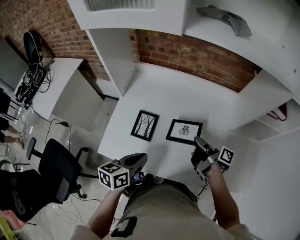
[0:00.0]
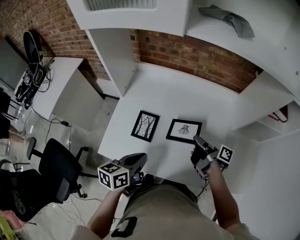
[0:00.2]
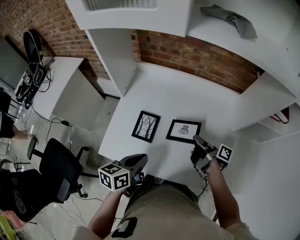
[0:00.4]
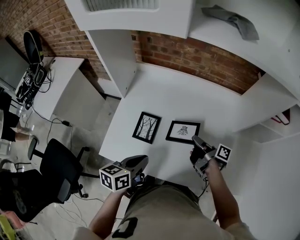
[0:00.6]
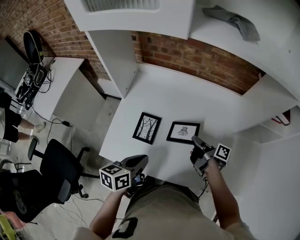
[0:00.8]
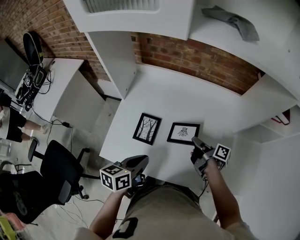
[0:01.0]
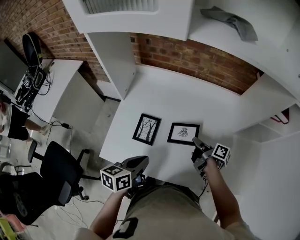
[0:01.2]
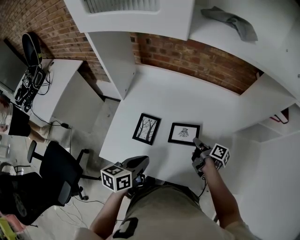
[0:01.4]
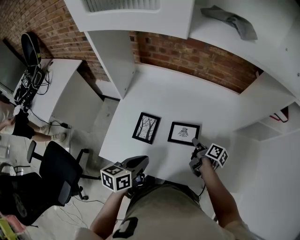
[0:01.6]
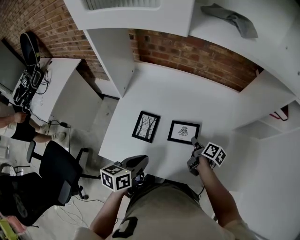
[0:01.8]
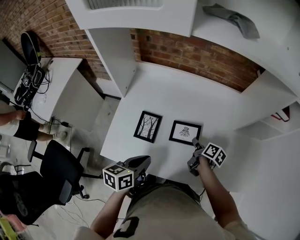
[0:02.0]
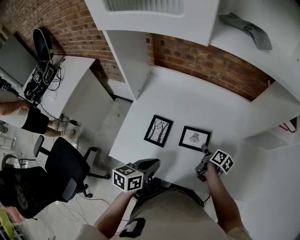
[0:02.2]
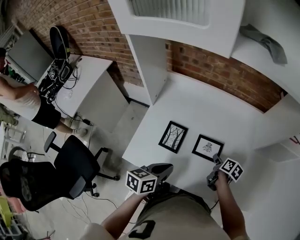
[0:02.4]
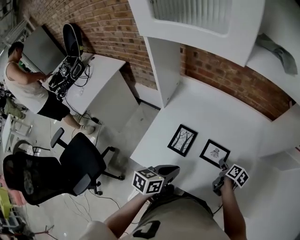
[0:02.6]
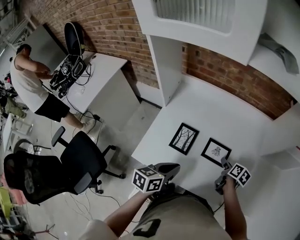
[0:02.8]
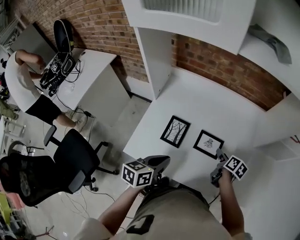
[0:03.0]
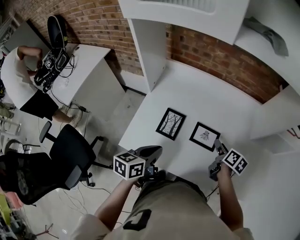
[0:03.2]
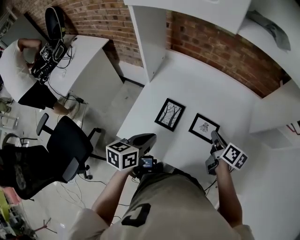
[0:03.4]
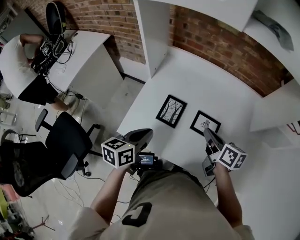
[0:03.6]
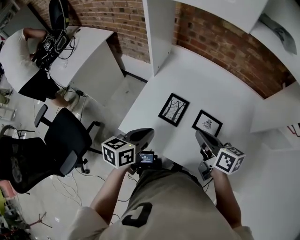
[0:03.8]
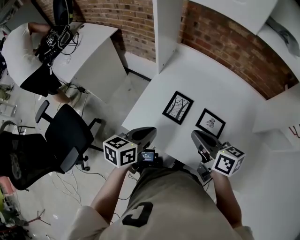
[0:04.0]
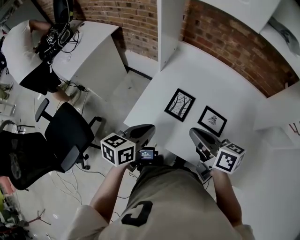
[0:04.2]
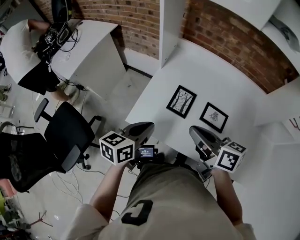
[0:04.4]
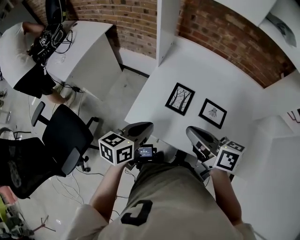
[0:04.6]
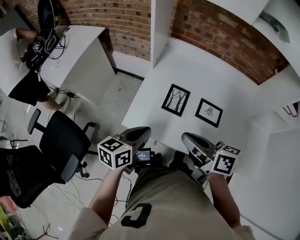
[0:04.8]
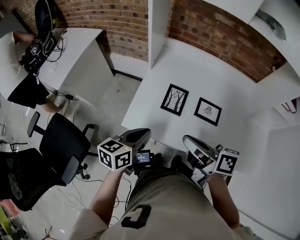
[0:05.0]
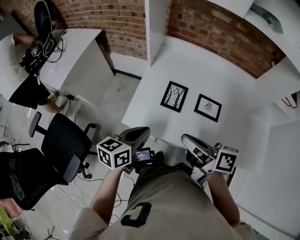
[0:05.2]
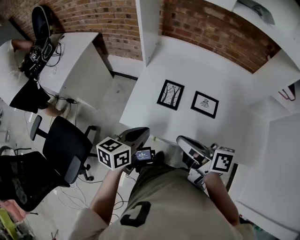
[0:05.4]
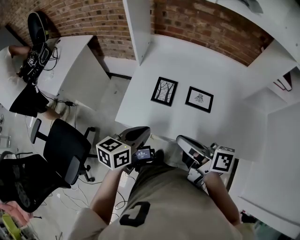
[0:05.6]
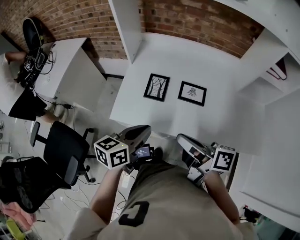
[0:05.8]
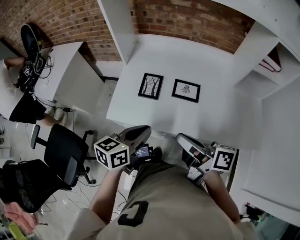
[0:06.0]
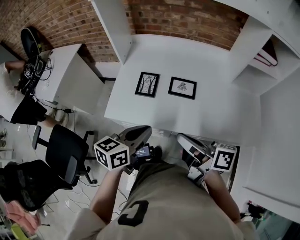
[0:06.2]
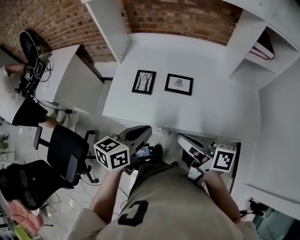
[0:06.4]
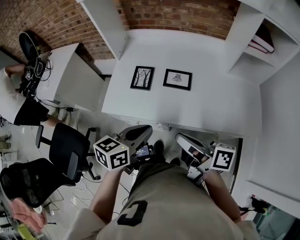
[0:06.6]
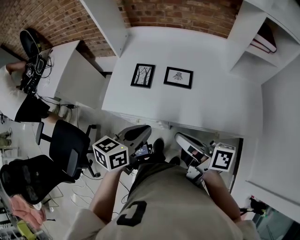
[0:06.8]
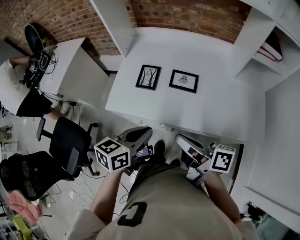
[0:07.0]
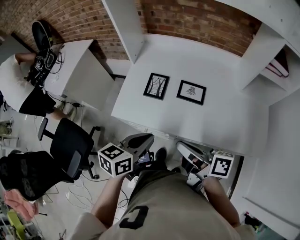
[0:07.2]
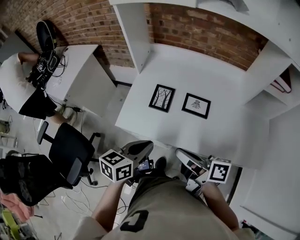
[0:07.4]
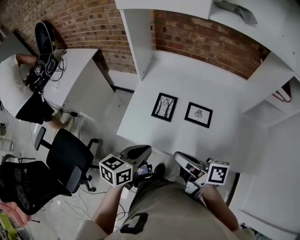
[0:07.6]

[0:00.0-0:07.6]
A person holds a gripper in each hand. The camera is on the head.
0:03.0 to 0:04.6: The left gripper shifts by roughly 10 cm.
0:04.6 to 0:06.0: The left gripper shifts by some 15 cm.
0:06.0 to 0:07.6: The left gripper moves some 5 cm.

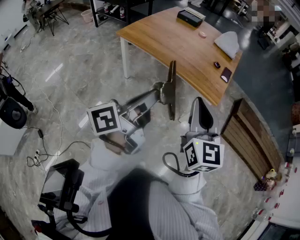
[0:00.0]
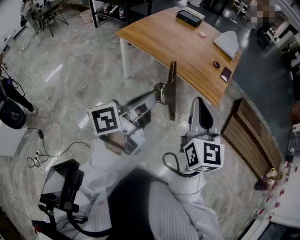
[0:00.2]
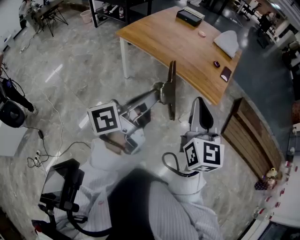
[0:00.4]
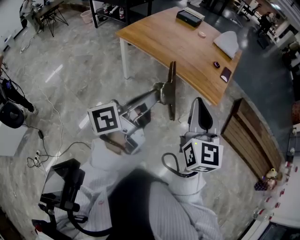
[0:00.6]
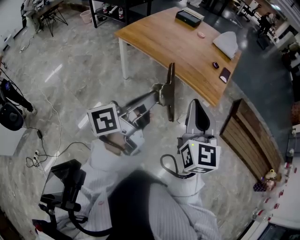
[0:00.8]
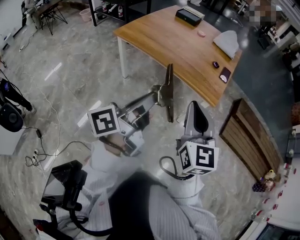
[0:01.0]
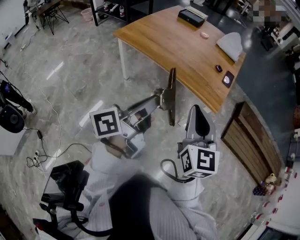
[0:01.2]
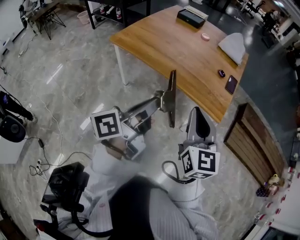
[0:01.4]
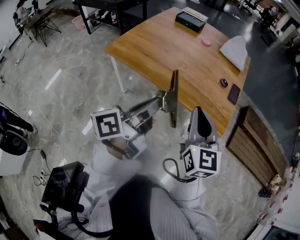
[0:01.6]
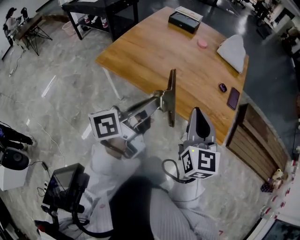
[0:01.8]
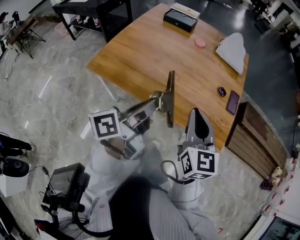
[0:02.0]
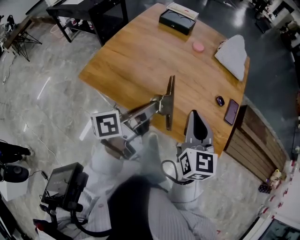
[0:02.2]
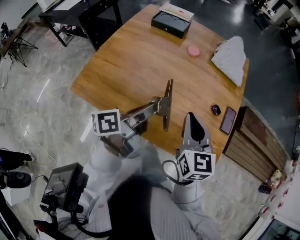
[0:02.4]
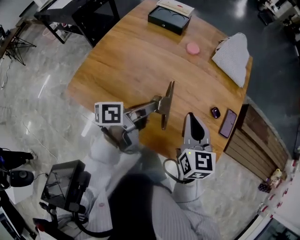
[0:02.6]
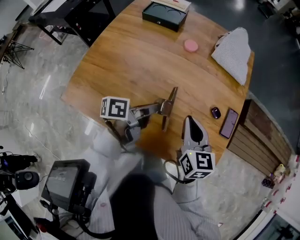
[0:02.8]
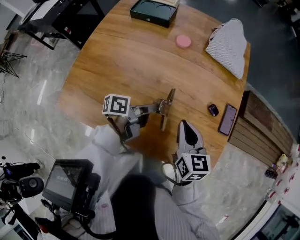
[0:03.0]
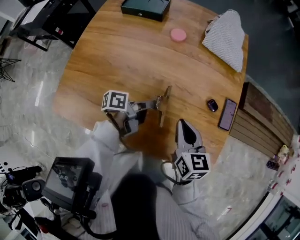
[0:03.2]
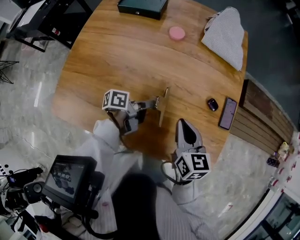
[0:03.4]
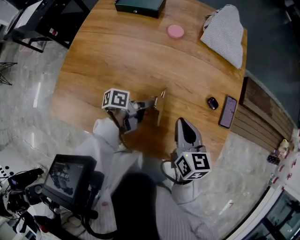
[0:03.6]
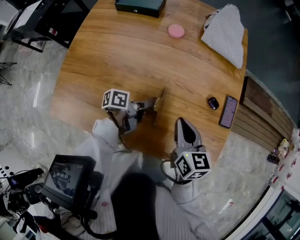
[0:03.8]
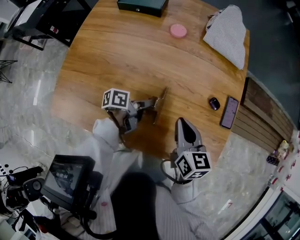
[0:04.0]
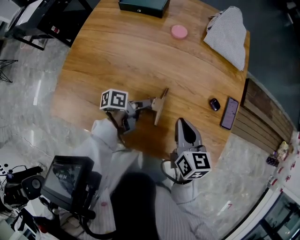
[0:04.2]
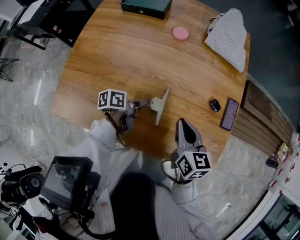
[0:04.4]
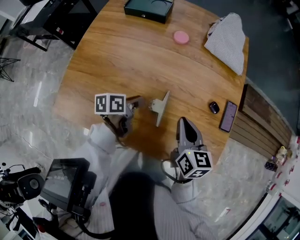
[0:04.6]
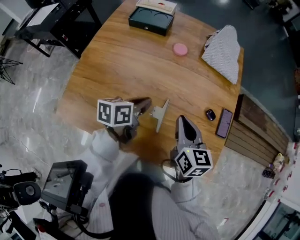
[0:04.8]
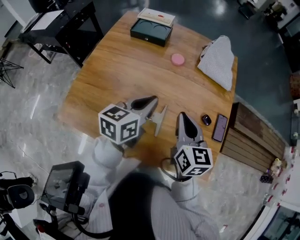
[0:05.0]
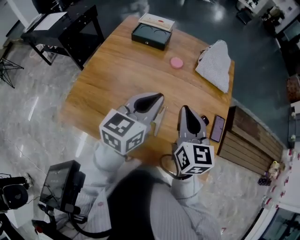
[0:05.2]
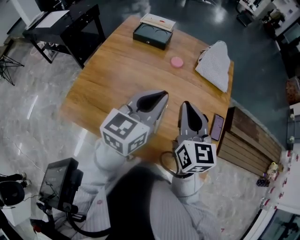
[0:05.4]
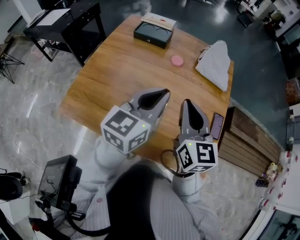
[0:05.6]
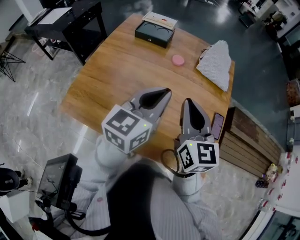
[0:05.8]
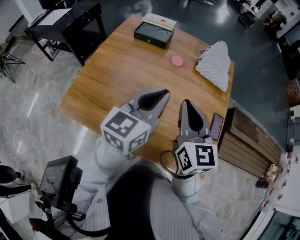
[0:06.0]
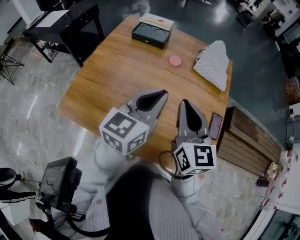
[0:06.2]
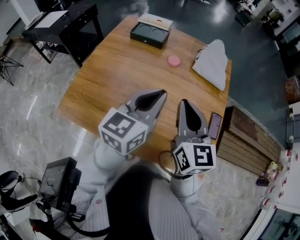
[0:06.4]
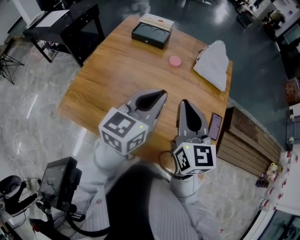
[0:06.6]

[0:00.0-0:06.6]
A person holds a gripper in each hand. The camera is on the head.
0:00.0 to 0:01.6: Both grippers travel together forward, roughly 20 cm.
0:01.6 to 0:03.2: The two grippers go roughly 40 cm forward and downward. The left gripper changes its angle by approximately 50 degrees. Meanwhile the right gripper changes its angle by roughly 30 degrees.
0:03.2 to 0:05.0: The right gripper travels upward by about 10 cm; the left gripper shifts some 20 cm upward, twists roughly 50 degrees clockwise, seen from behind, and opens, then closes again.
0:05.0 to 0:06.6: The grippers both shift upward by roughly 10 cm.

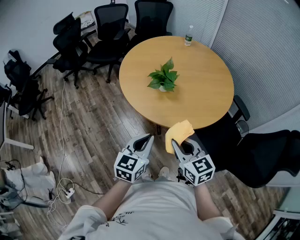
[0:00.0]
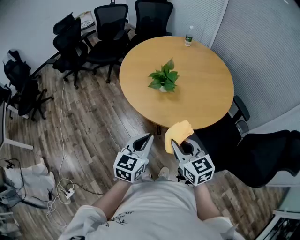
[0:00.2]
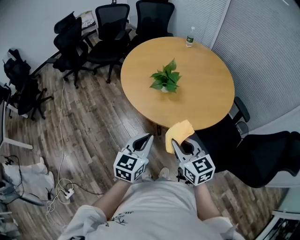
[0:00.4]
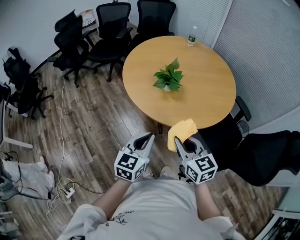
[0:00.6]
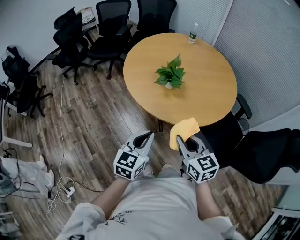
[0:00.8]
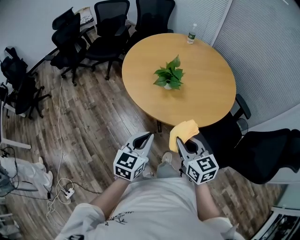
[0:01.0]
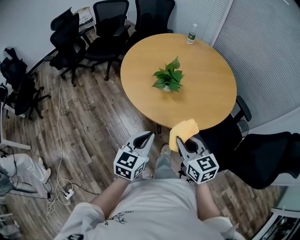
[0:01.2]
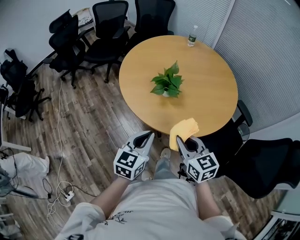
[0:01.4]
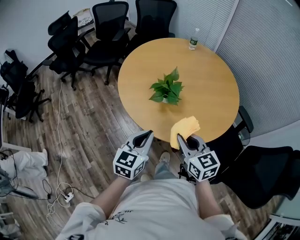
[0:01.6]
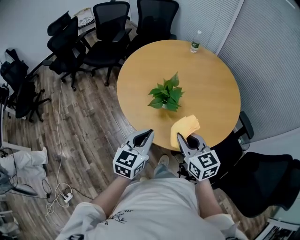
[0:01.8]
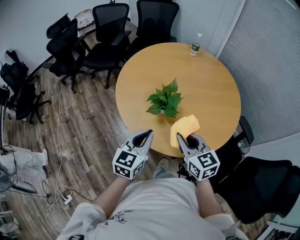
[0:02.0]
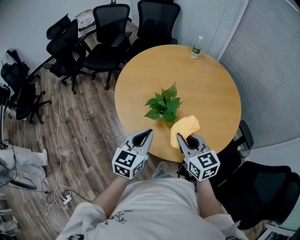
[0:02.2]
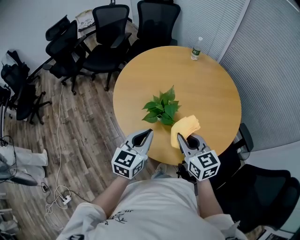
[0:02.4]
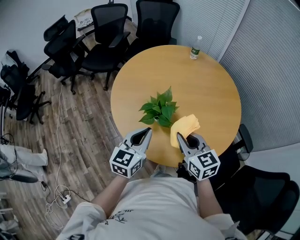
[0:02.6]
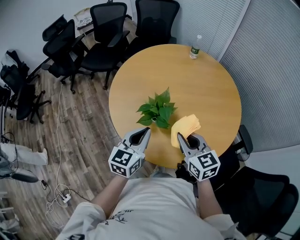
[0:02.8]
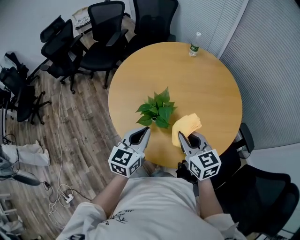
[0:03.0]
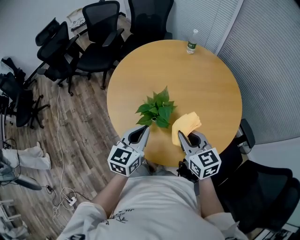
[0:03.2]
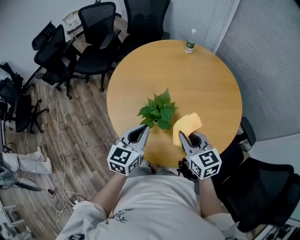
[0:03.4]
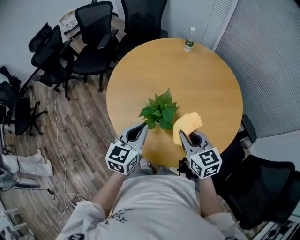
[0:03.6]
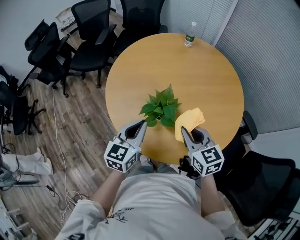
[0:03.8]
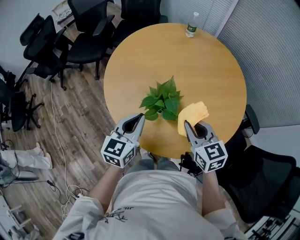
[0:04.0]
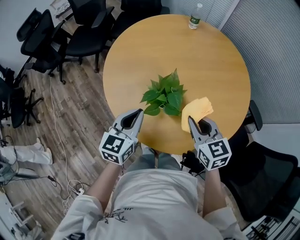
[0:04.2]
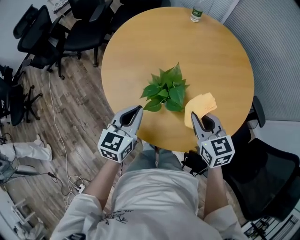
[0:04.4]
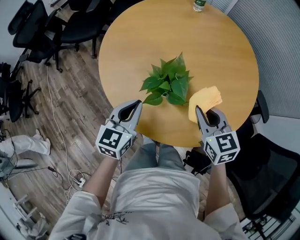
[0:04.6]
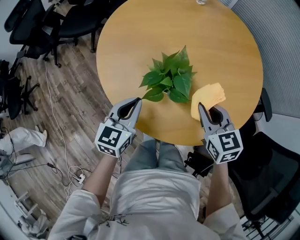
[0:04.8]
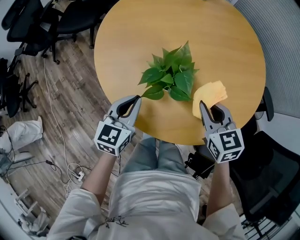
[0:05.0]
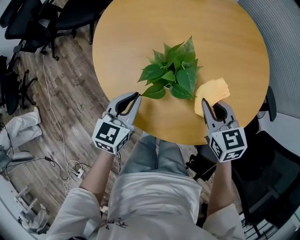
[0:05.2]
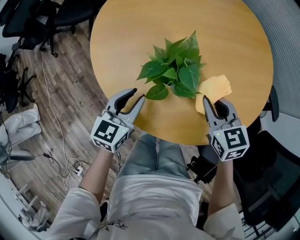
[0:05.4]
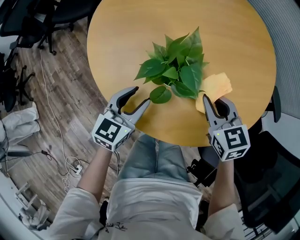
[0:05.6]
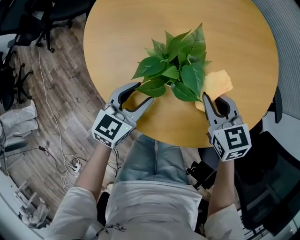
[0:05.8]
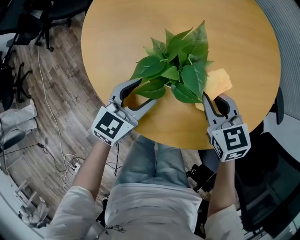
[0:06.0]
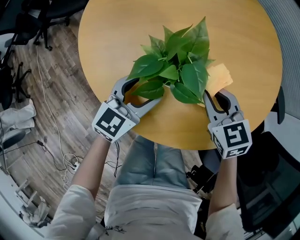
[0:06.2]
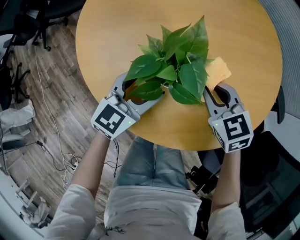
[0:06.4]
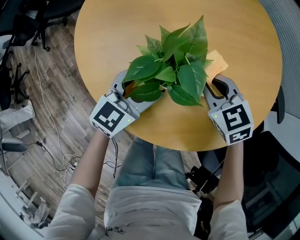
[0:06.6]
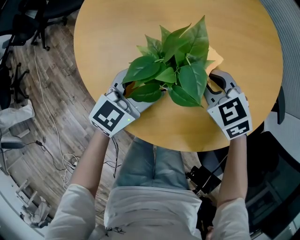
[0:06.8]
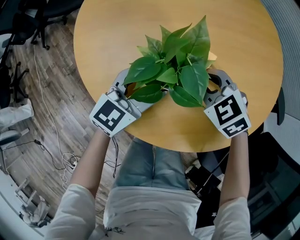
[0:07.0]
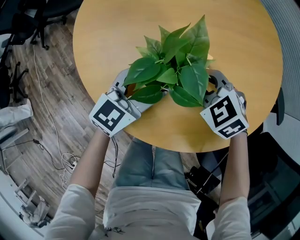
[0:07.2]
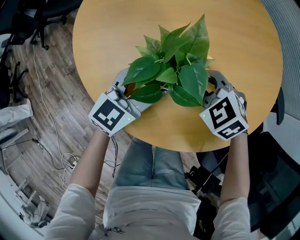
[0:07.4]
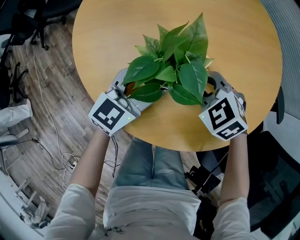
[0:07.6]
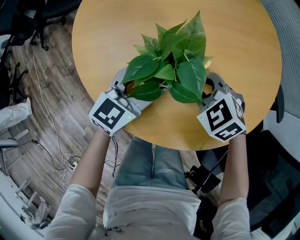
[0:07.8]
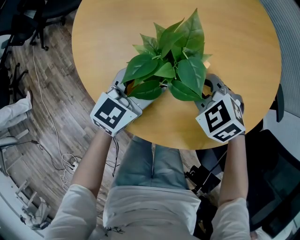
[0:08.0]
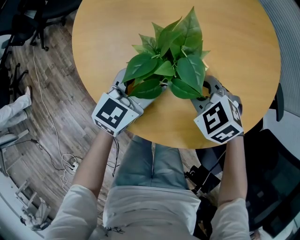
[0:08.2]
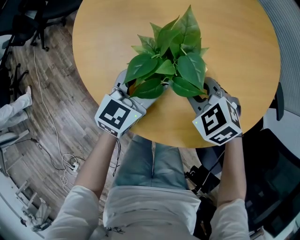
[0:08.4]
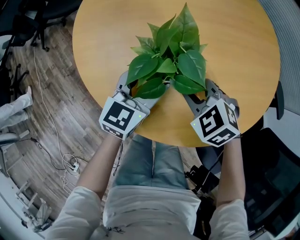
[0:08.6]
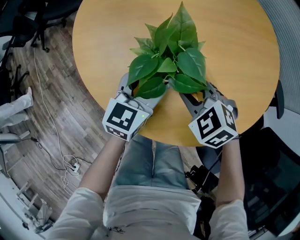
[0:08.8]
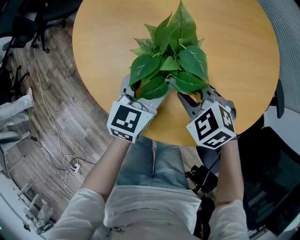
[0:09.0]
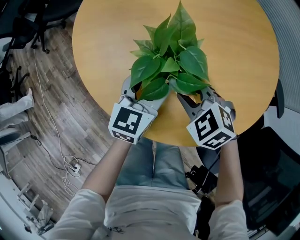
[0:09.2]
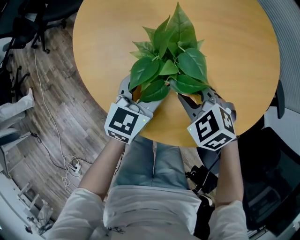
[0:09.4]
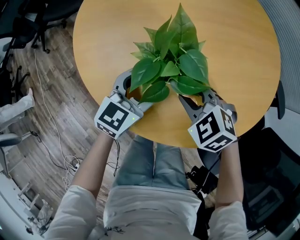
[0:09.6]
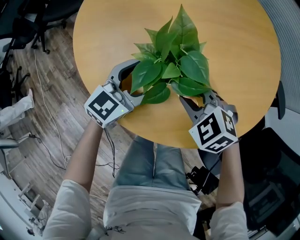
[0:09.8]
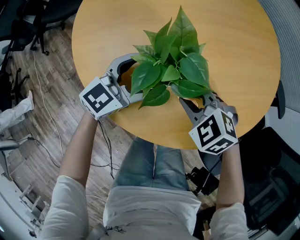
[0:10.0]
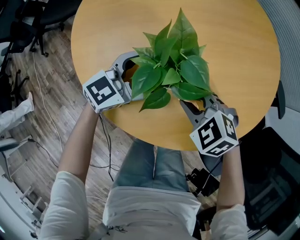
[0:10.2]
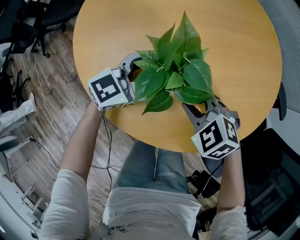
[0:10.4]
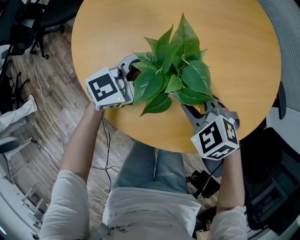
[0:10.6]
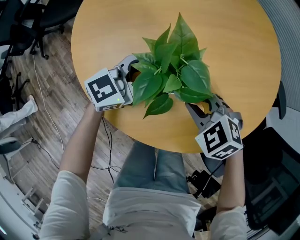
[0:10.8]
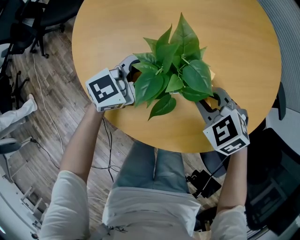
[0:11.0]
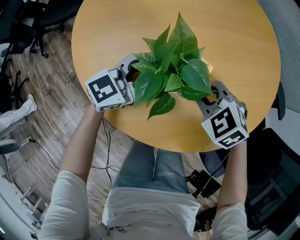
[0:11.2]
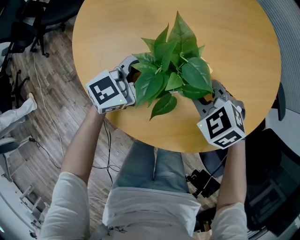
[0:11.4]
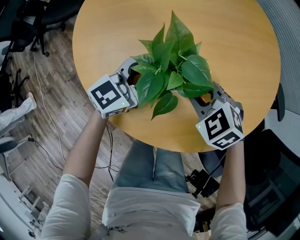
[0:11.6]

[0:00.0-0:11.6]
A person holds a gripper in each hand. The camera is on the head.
0:00.0 to 0:01.4: Both grippers travel together forward, about 10 cm.
0:01.4 to 0:02.8: The two grippers go approximately 20 cm forward.
0:02.8 to 0:04.4: The left gripper heads to the left, downward and forward, covering about 10 cm; the right gripper travels downward by roughly 5 cm.
0:04.4 to 0:05.8: Both grippers move downward, some 15 cm. The left gripper opens its fingers.
0:05.8 to 0:07.2: The left gripper ends up some 5 cm from where it was; the right gripper shifts about 5 cm downward, and rotates roughly 30 degrees.
0:07.2 to 0:08.8: The right gripper travels backward by approximately 5 cm.
0:08.8 to 0:10.2: The left gripper rotates about 30 degrees, and opens its fingers.
0:10.2 to 0:11.6: The grippers stay close to where they were, moving slightly.
